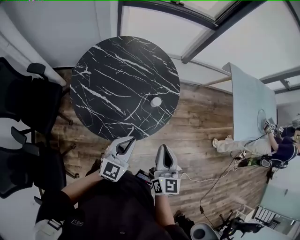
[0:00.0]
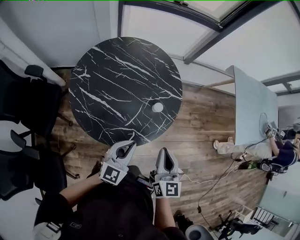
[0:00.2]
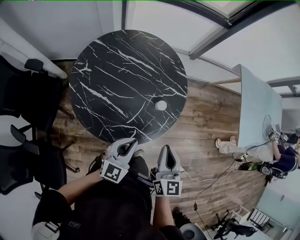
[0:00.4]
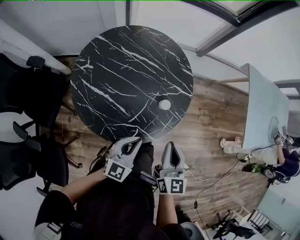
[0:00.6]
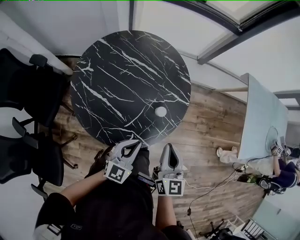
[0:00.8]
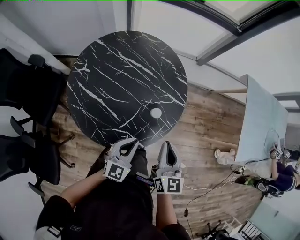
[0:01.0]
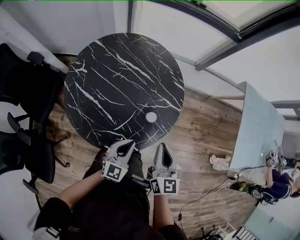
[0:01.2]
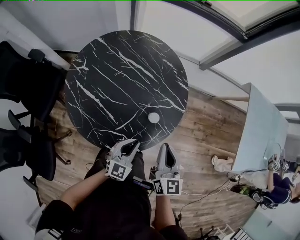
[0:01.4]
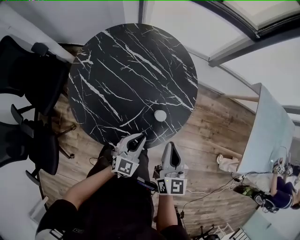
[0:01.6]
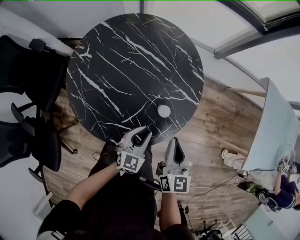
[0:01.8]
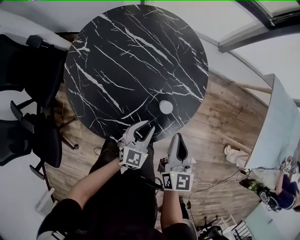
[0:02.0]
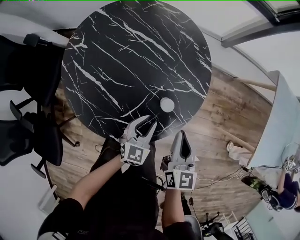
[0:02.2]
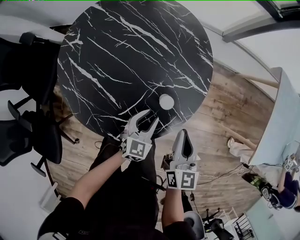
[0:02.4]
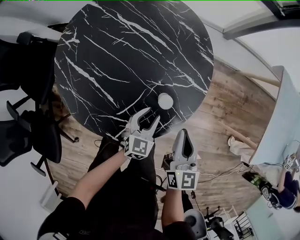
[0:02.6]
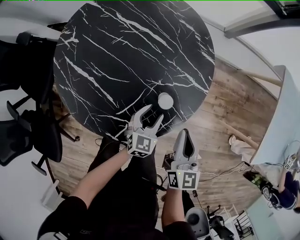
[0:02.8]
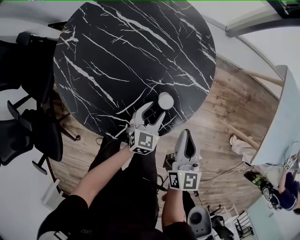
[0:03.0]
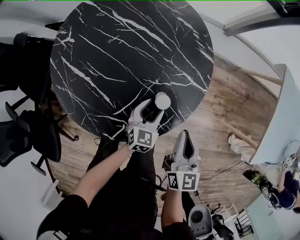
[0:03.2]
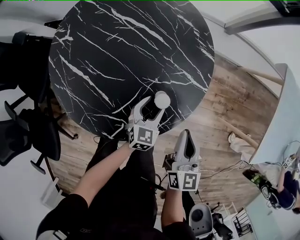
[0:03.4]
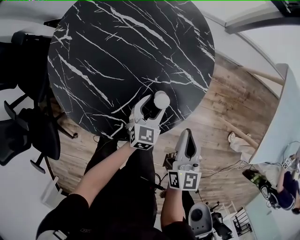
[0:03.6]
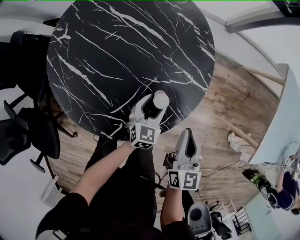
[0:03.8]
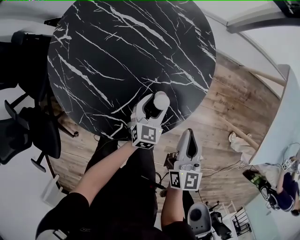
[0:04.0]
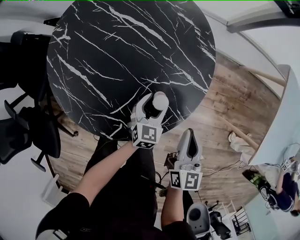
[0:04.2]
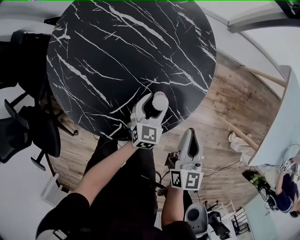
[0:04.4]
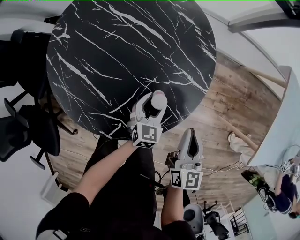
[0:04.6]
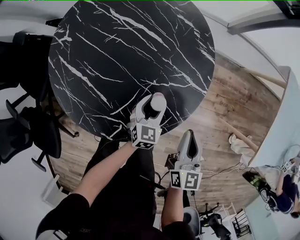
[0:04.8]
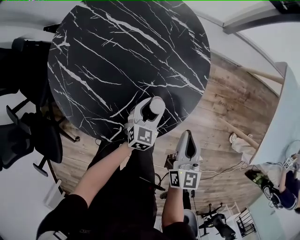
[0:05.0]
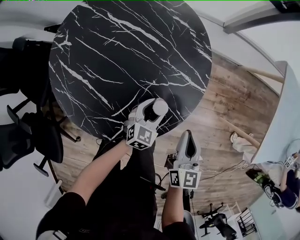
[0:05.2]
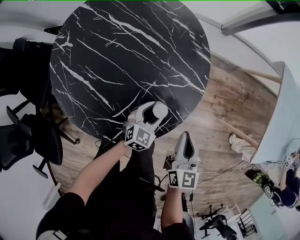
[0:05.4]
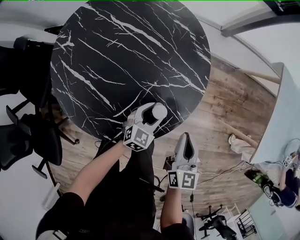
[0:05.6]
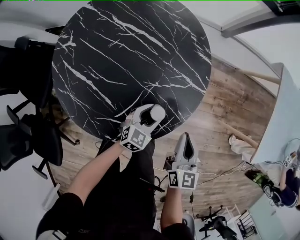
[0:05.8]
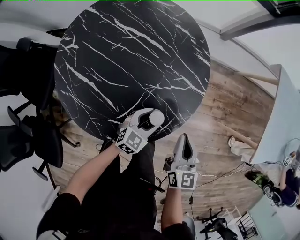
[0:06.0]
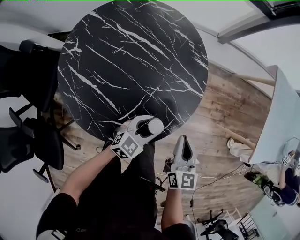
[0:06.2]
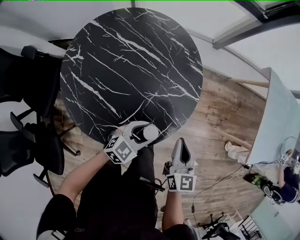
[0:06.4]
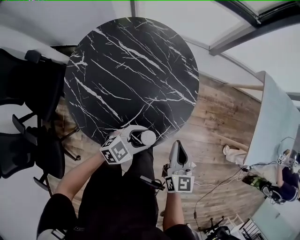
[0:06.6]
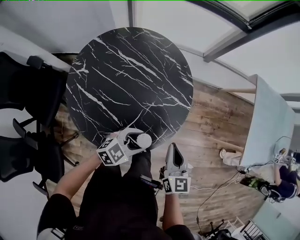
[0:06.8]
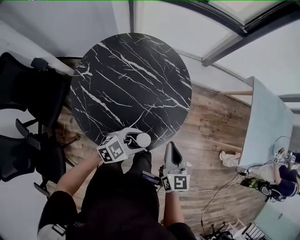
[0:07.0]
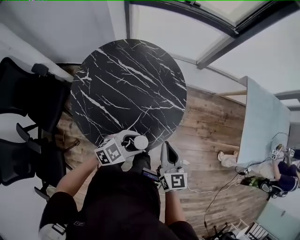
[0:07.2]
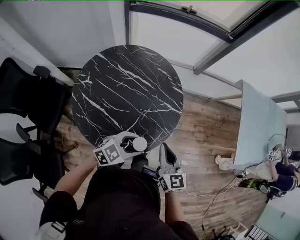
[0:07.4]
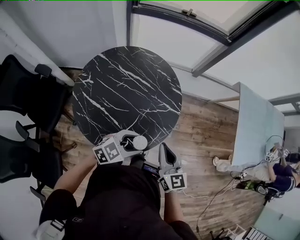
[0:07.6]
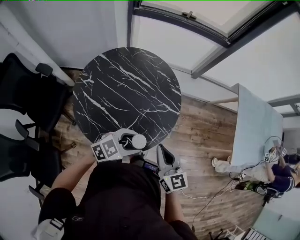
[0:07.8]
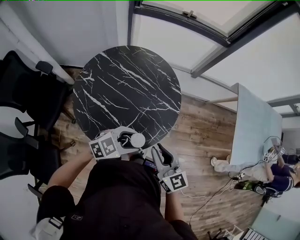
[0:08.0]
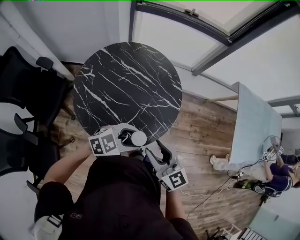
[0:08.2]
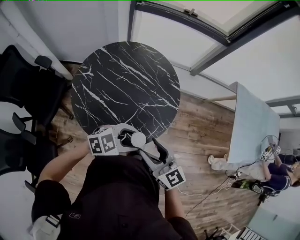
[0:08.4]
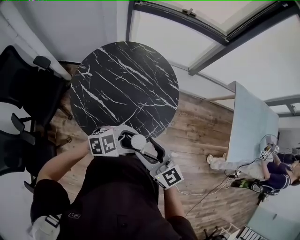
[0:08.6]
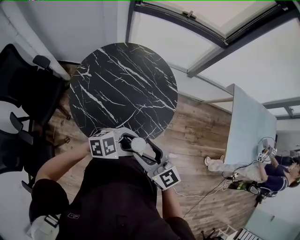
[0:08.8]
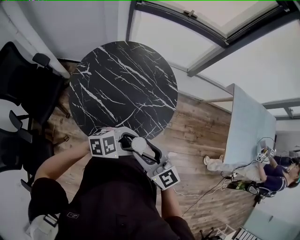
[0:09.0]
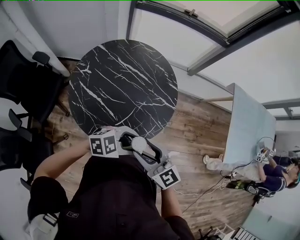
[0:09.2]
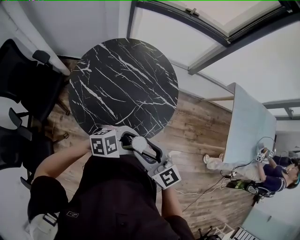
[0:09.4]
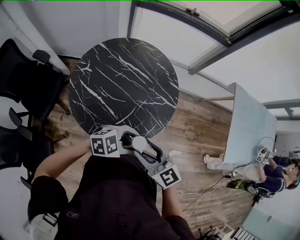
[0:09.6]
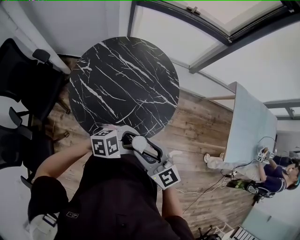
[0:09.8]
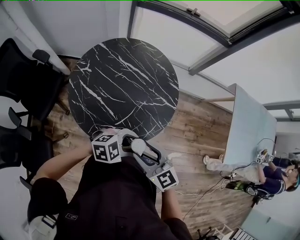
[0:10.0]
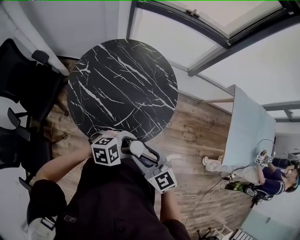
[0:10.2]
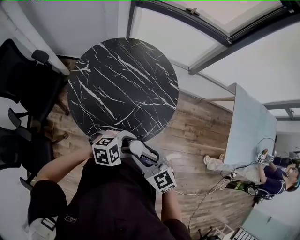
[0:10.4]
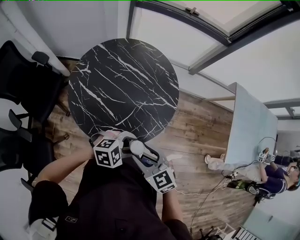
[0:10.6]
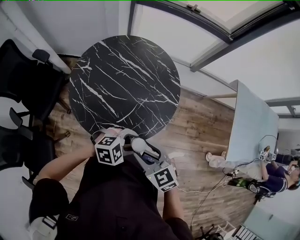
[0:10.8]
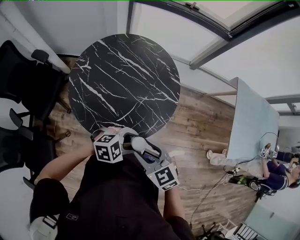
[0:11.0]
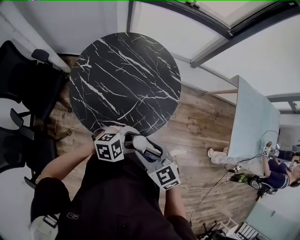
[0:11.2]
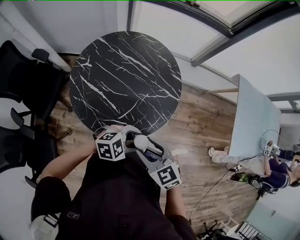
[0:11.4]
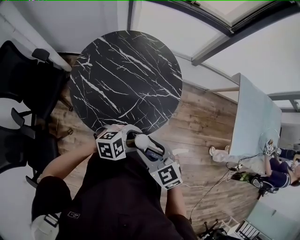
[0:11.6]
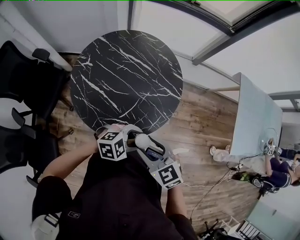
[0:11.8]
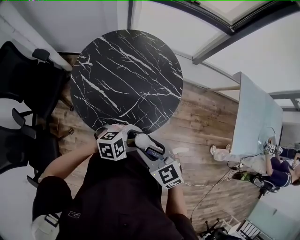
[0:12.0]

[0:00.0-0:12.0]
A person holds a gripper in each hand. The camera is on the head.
0:00.0 to 0:01.6: The right gripper is displaced forward and downward by roughly 20 cm; the left gripper travels downward and forward by about 20 cm.
0:01.6 to 0:03.0: The right gripper is displaced downward by approximately 10 cm, while the left gripper moves downward and forward, some 15 cm, and opens up.
0:03.0 to 0:04.4: There are only small adjustments of the grippers.
0:04.4 to 0:06.0: The left gripper shifts some 5 cm backward, and changes its angle by about 30 degrees.
0:06.0 to 0:07.6: The two grippers go about 20 cm upward. The left gripper swivels some 20 degrees.
0:07.6 to 0:09.0: The left gripper moves approximately 5 cm. The right gripper shifts by about 10 cm, turns by approximately 30 degrees, and opens up.
0:09.0 to 0:10.4: The grippers stay close to where they were, moving slightly.
0:10.4 to 0:12.0: The grippers stay close to where they were, moving slightly.

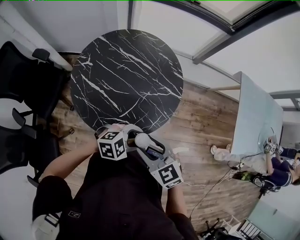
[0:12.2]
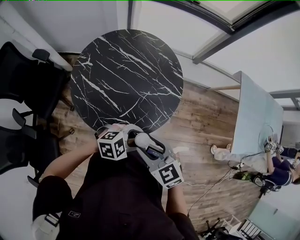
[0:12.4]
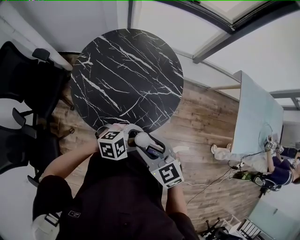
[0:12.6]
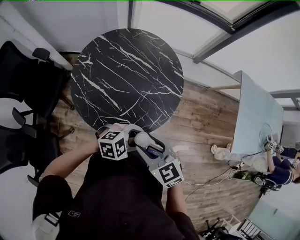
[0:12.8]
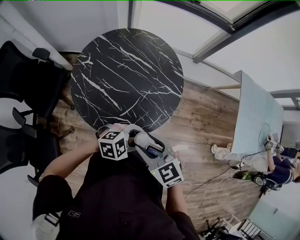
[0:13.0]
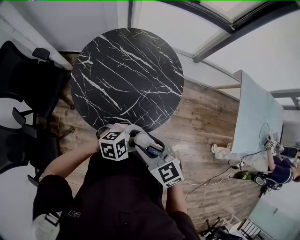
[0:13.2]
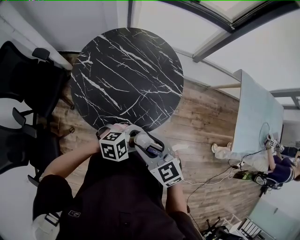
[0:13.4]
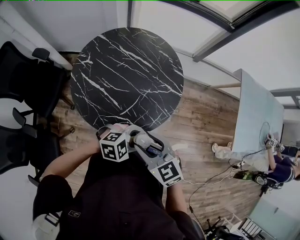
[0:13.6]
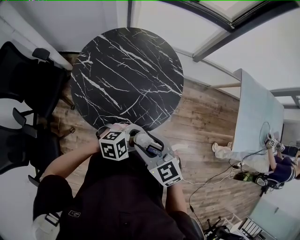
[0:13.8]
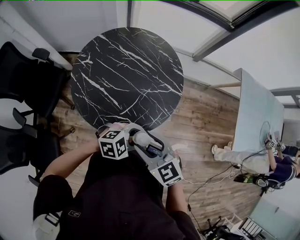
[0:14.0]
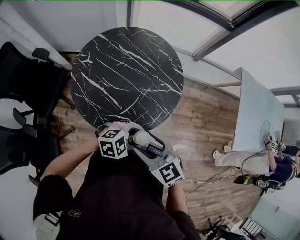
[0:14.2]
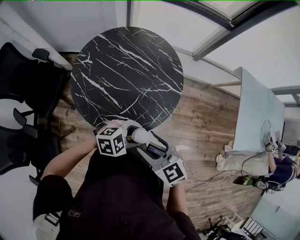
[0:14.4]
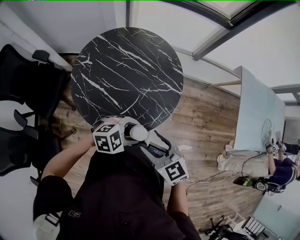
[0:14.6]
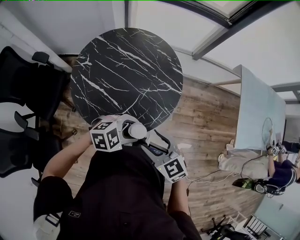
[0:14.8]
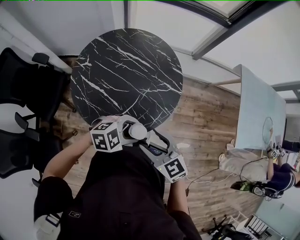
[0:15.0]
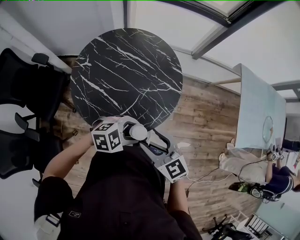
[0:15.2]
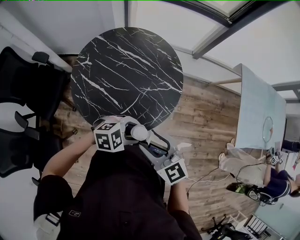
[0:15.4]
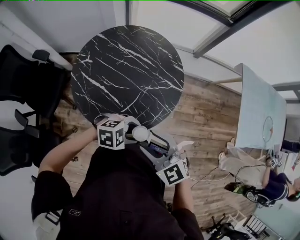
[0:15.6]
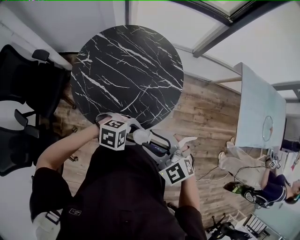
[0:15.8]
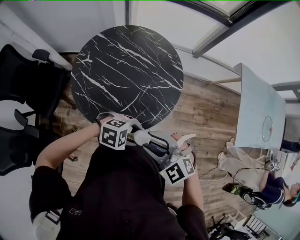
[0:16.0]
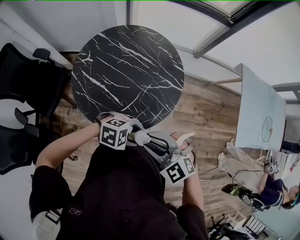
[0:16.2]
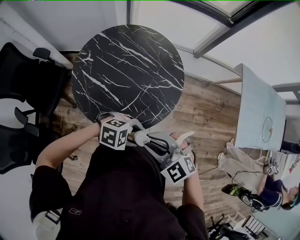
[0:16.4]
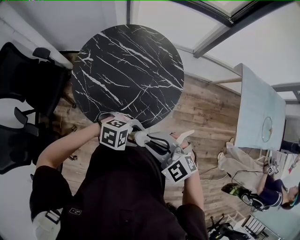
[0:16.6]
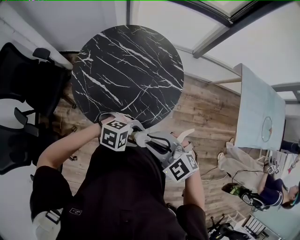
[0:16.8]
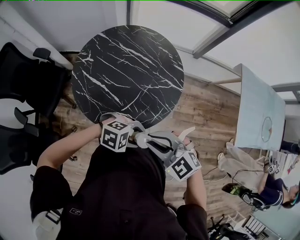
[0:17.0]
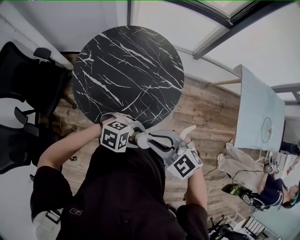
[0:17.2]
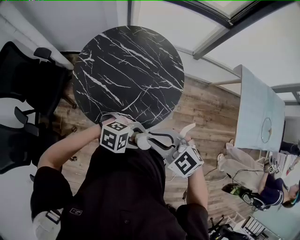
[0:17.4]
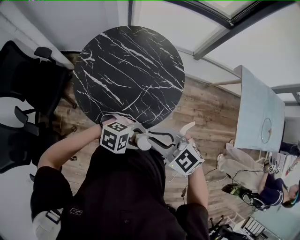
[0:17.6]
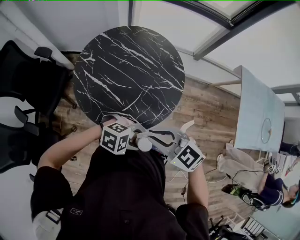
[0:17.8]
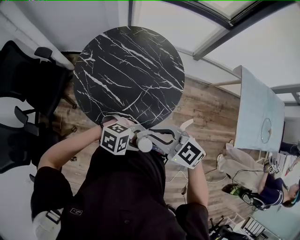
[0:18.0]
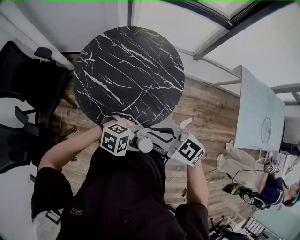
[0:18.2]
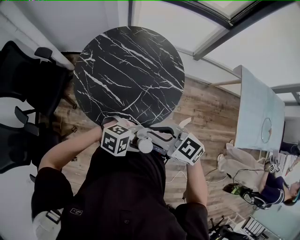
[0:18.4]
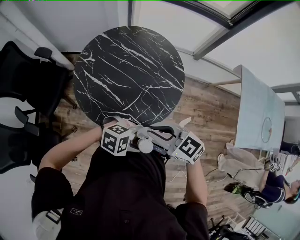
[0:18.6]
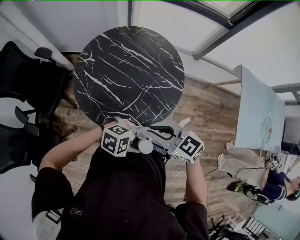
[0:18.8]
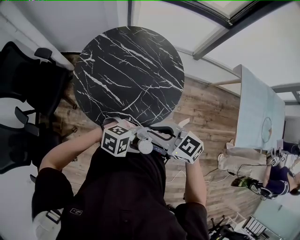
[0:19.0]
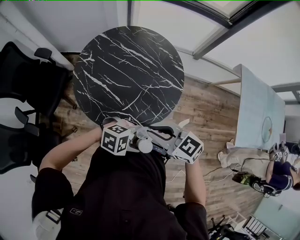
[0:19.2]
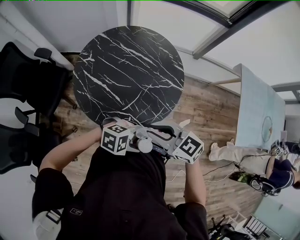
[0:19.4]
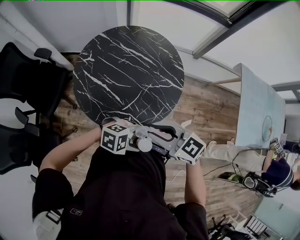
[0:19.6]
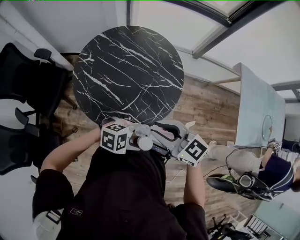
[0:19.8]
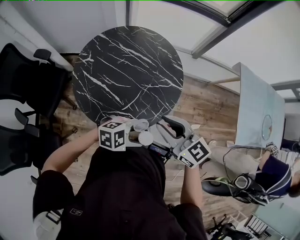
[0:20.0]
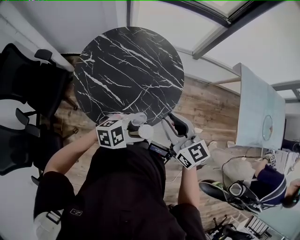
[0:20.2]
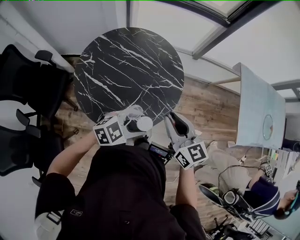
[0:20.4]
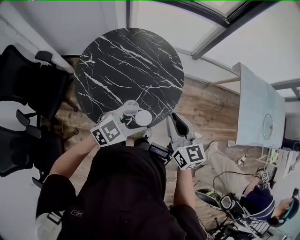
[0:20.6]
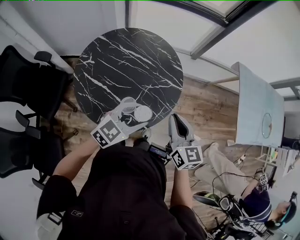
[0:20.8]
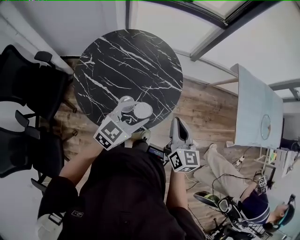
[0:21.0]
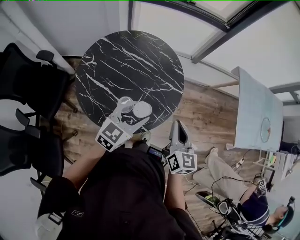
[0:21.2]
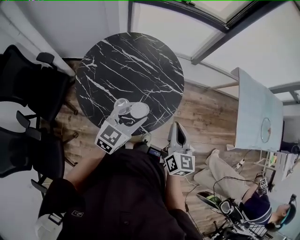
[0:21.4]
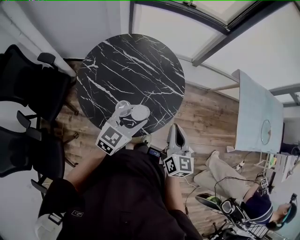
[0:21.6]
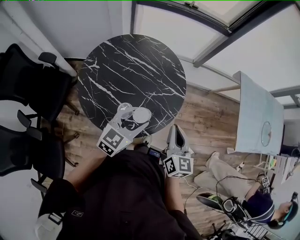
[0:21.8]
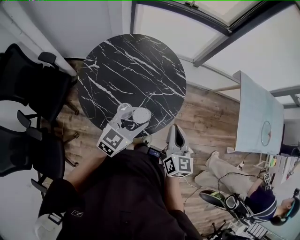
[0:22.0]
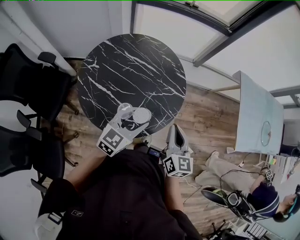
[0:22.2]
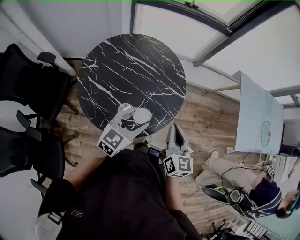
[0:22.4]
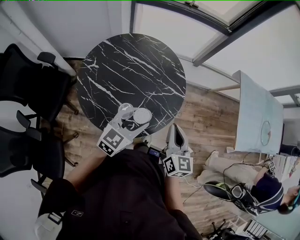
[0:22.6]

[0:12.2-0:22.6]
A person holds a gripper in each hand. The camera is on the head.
0:12.2 to 0:15.2: The grippers stay close to where they were, moving slightly.
0:15.2 to 0:16.6: The right gripper swivels about 30 degrees, and closes up. Meanwhile the left gripper ends up roughly 5 cm from where it was, and turns by about 20 degrees.
0:16.6 to 0:18.2: The right gripper changes its angle by approximately 20 degrees.
0:18.2 to 0:19.6: The grippers stay close to where they were, moving slightly.
0:19.6 to 0:21.2: The right gripper changes place by roughly 10 cm, and changes its angle by some 60 degrees, while the left gripper shifts by roughly 20 cm, and changes its angle by approximately 70 degrees.
0:21.2 to 0:22.6: The grippers move only a little.

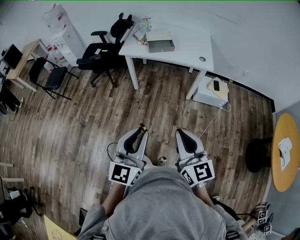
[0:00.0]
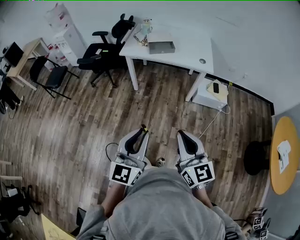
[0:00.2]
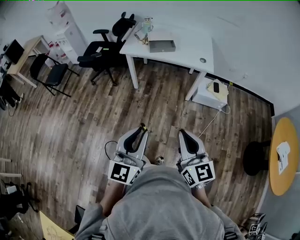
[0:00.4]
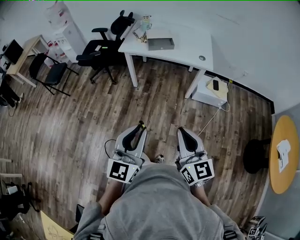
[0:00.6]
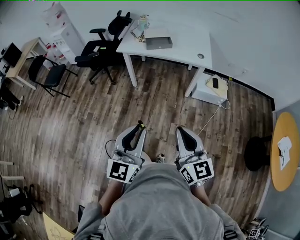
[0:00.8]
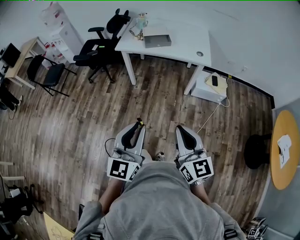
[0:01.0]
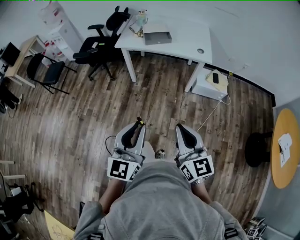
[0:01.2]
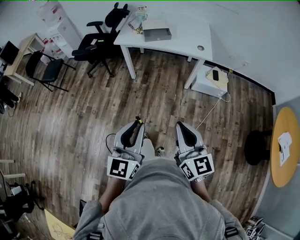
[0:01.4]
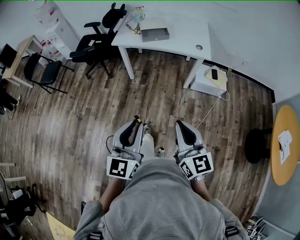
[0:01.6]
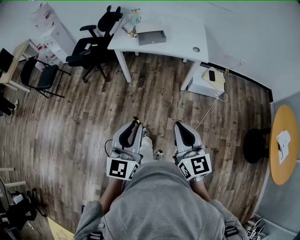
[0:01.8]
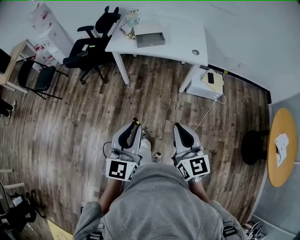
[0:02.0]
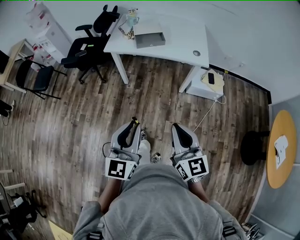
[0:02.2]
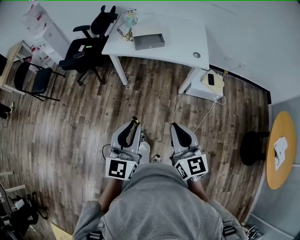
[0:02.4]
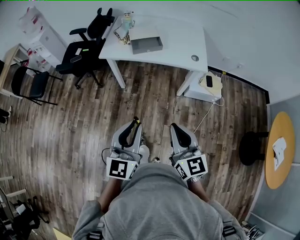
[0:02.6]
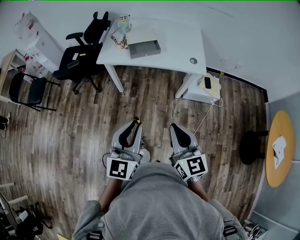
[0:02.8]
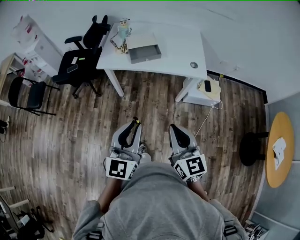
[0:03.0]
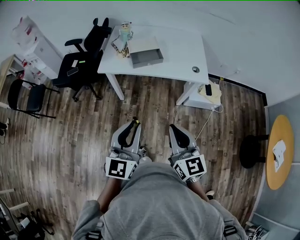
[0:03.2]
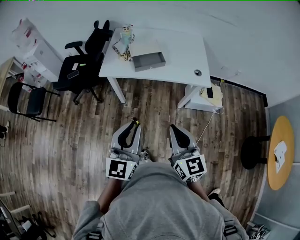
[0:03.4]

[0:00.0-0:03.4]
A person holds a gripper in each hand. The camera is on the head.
0:00.0 to 0:01.6: The grippers stay close to where they were, moving slightly.
0:01.6 to 0:03.4: Both grippers travel together forward, roughly 30 cm.
